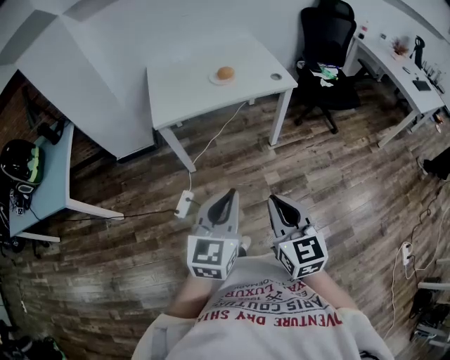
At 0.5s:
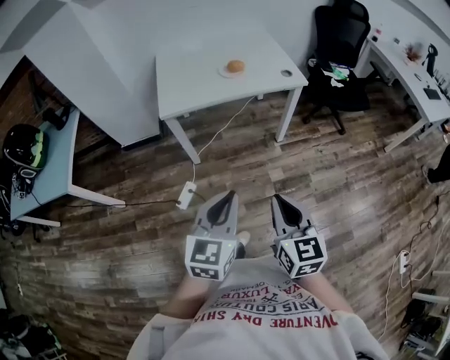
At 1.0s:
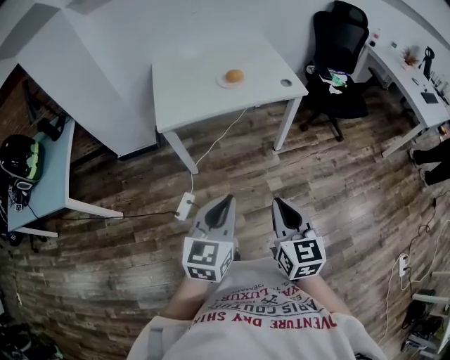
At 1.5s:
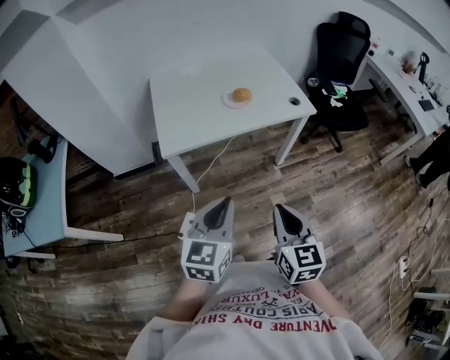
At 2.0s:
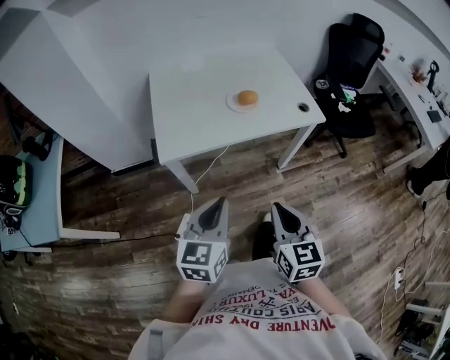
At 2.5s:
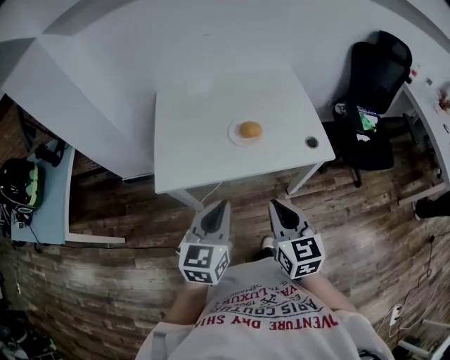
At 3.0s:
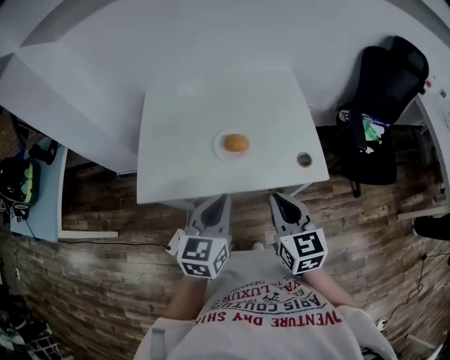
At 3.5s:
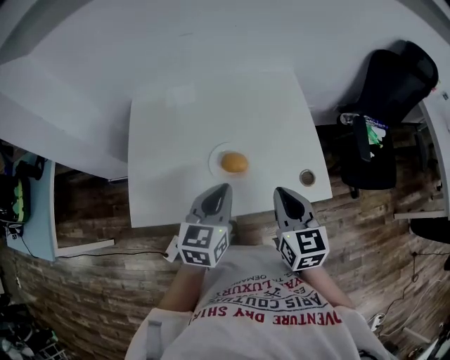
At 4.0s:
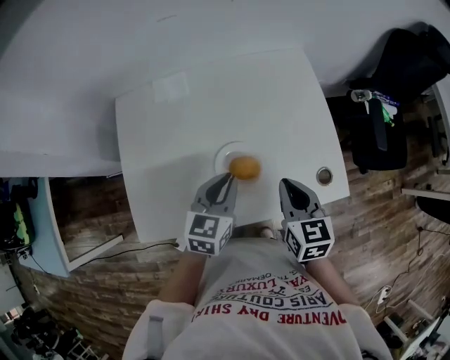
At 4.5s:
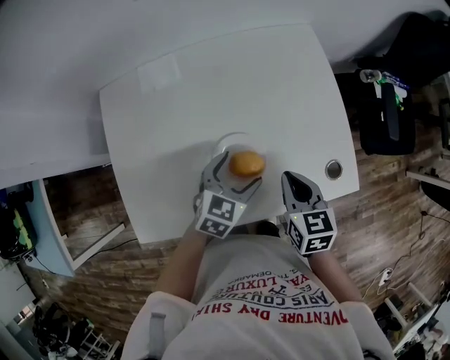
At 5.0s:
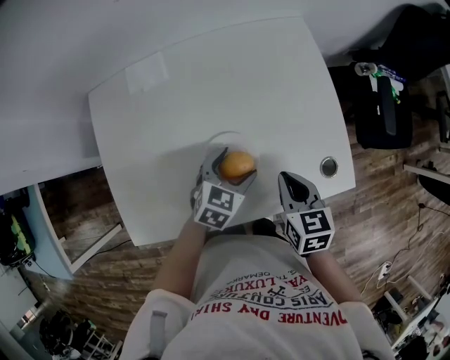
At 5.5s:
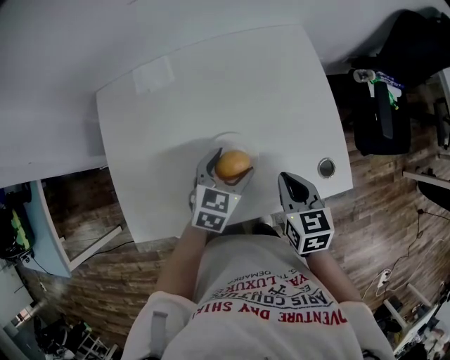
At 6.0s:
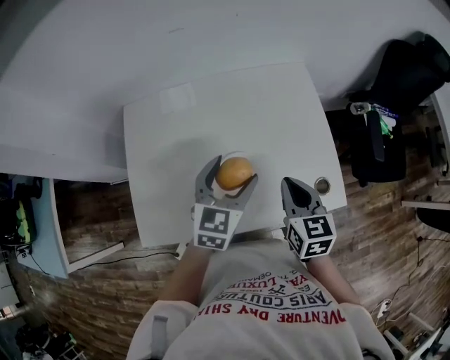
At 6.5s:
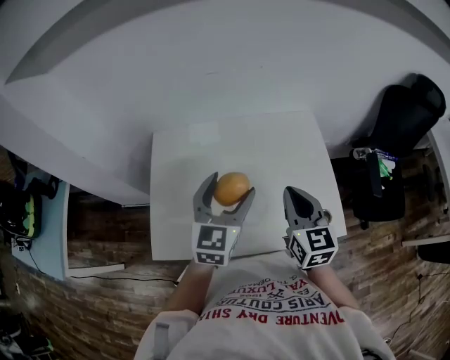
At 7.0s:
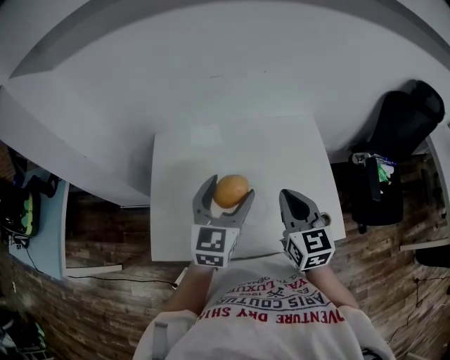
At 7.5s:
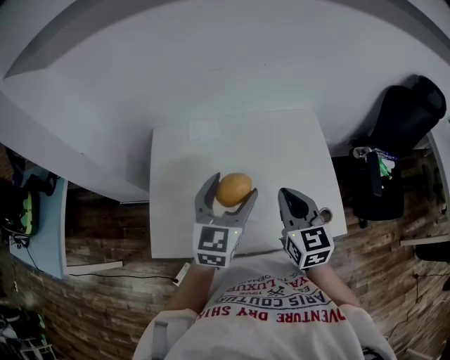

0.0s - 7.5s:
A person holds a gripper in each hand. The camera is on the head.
0.0s - 2.0s: The left gripper is displaced forward and to the left by roughly 25 cm. The right gripper moves forward, some 25 cm.
2.0s - 4.0s: The two grippers travel together, forward, about 50 cm.
4.0s - 5.5s: Both grippers move downward, about 5 cm. The left gripper opens.
5.5s - 7.5s: The right gripper moves upward and to the left, some 20 cm, and turns by about 30 degrees, while the left gripper heads upward, covering about 25 cm, and turns by approximately 30 degrees.

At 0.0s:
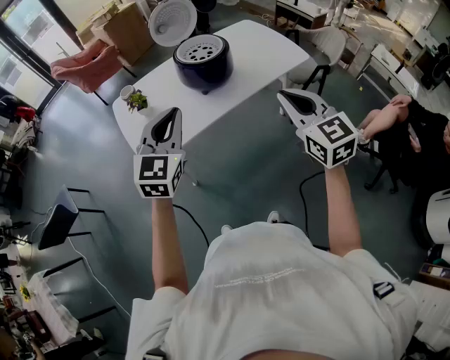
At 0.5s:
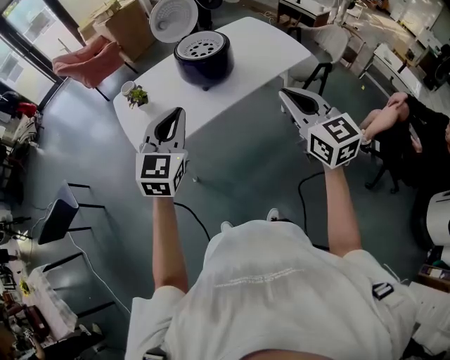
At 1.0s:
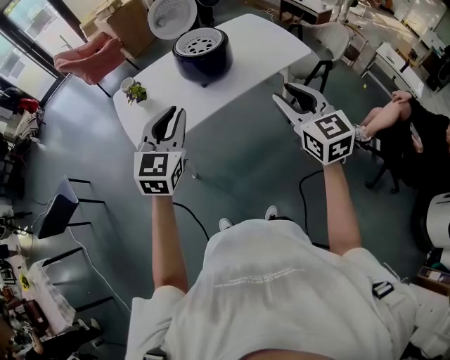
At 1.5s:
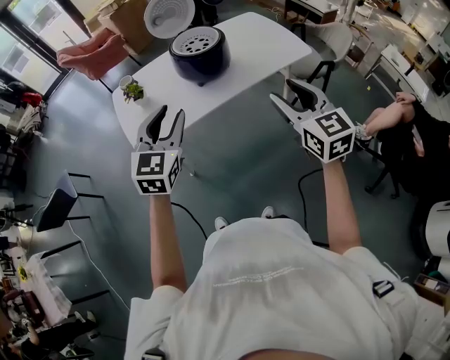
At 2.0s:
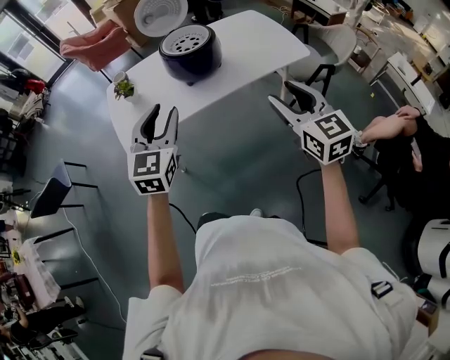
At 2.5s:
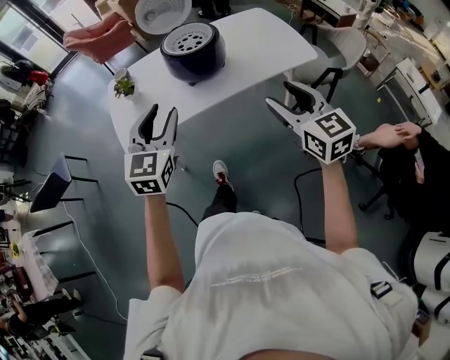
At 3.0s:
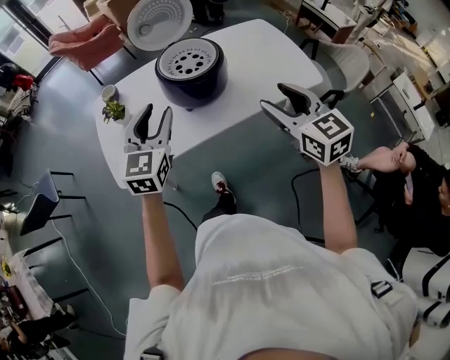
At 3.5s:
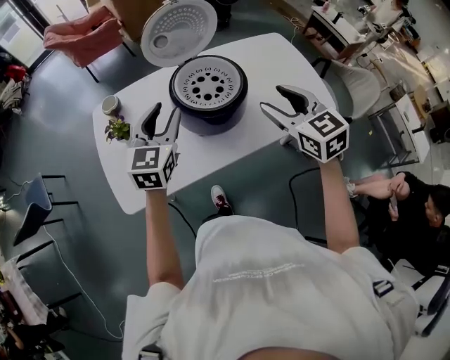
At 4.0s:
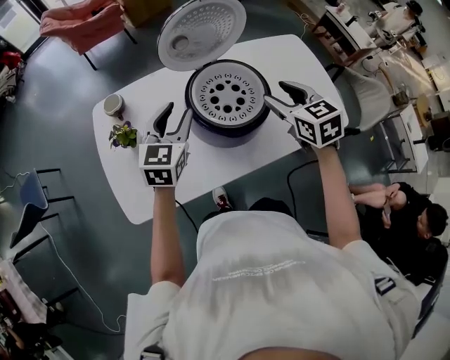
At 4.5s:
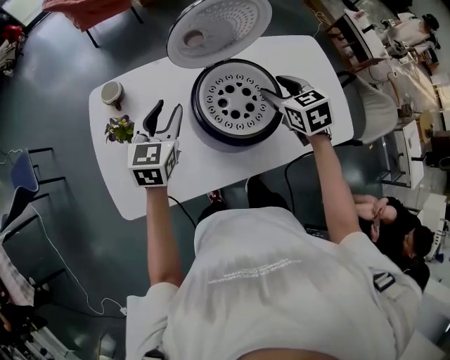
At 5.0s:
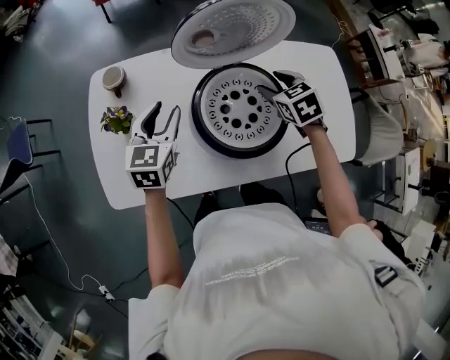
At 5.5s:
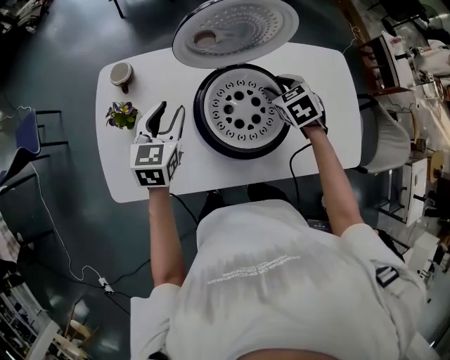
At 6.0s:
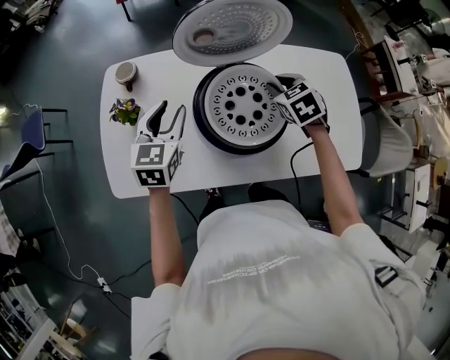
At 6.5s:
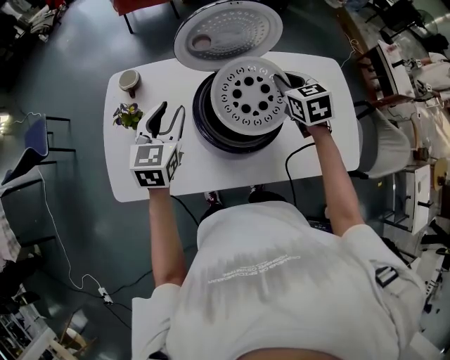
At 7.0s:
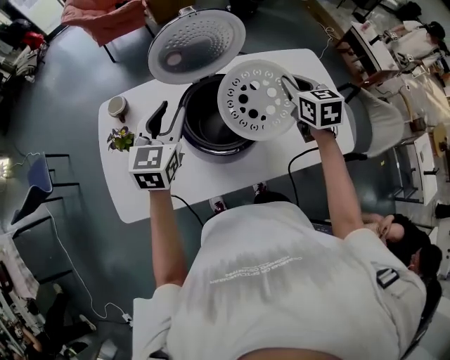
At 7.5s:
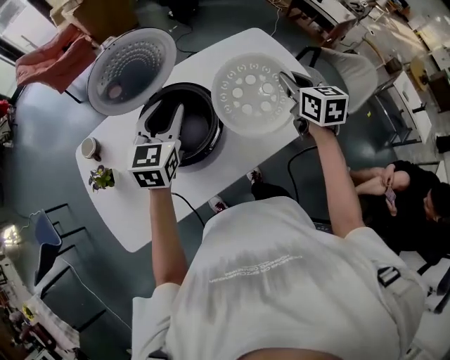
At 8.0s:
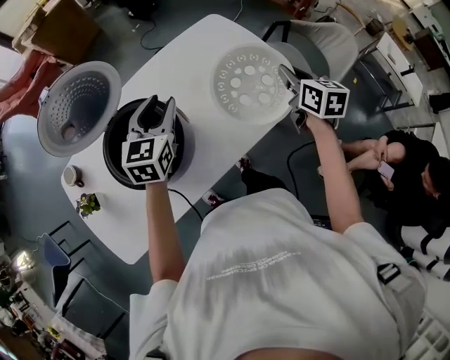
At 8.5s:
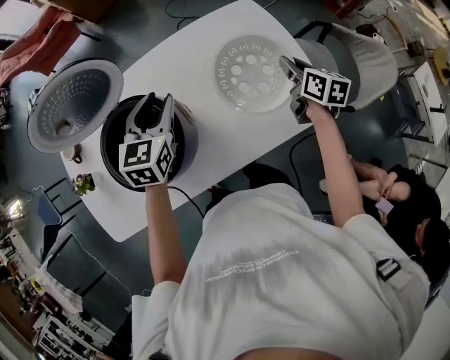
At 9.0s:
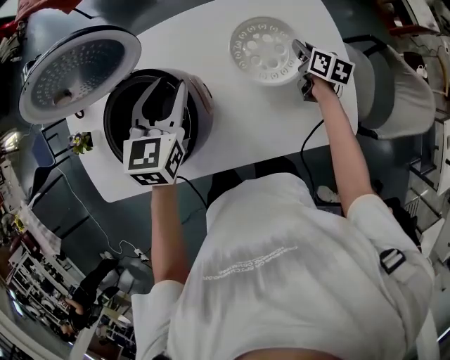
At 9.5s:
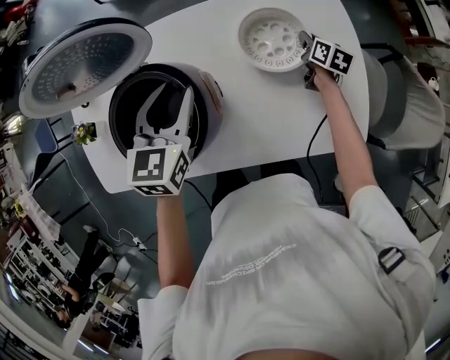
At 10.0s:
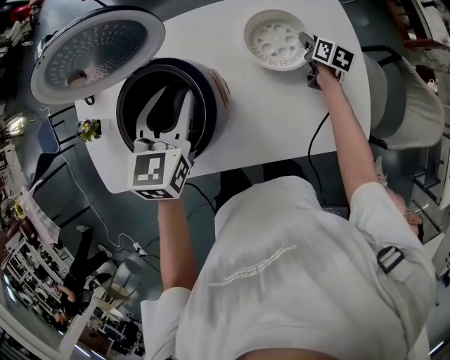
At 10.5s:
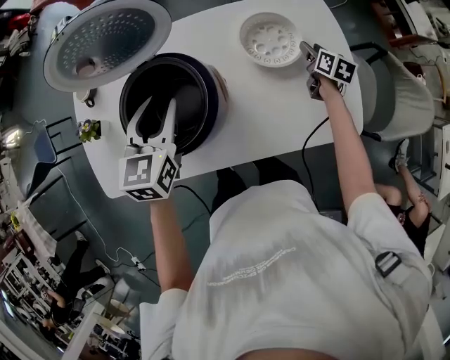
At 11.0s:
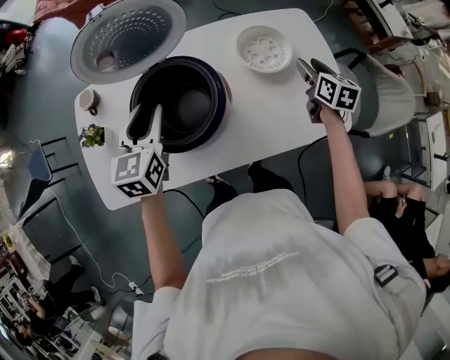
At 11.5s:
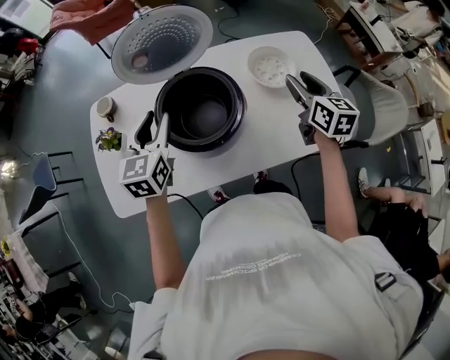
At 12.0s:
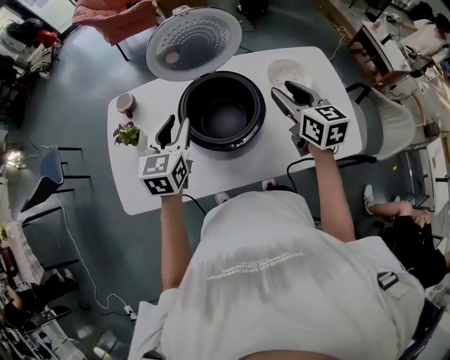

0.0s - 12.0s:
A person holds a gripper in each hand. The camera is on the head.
0.0s - 2.0s: Both grippers move to the right, about 10 cm. The right gripper opens its fingers. Meanwhile the left gripper opens.
2.0s - 4.0s: Both grippers are carried forward, approximately 40 cm. The right gripper turns by roughly 20 degrees.
4.0s - 6.0s: The right gripper is displaced forward and downward by approximately 20 cm, swivels approximately 30 degrees, and closes its fingers, while the left gripper turns by some 20 degrees.
6.0s - 8.0s: The left gripper ends up roughly 30 cm from where it was, and swivels roughly 30 degrees. Meanwhile the right gripper changes place by some 35 cm, and rolls clockwise, seen from behind, by some 60 degrees.
8.0s - 10.0s: The right gripper goes some 35 cm forward and downward, swivels about 20 degrees, and opens its fingers, while the left gripper shifts about 5 cm to the left, and swivels about 30 degrees.
10.0s - 12.0s: The right gripper heads upward, to the left and backward, covering roughly 50 cm, and turns by approximately 40 degrees; the left gripper travels to the left and backward by about 20 cm.

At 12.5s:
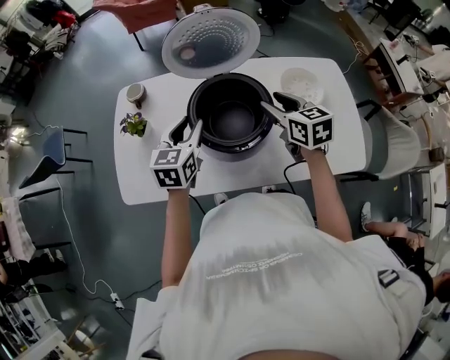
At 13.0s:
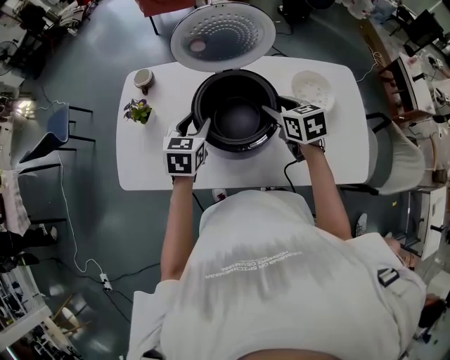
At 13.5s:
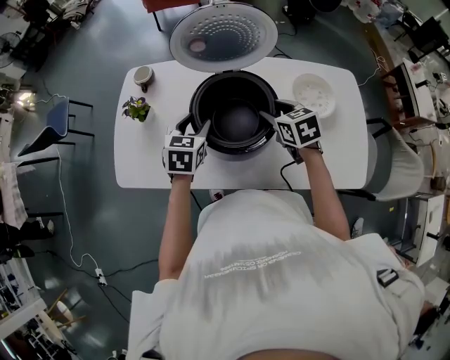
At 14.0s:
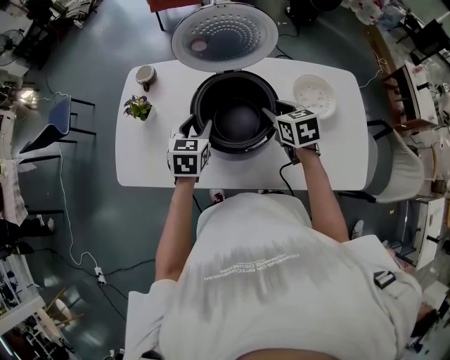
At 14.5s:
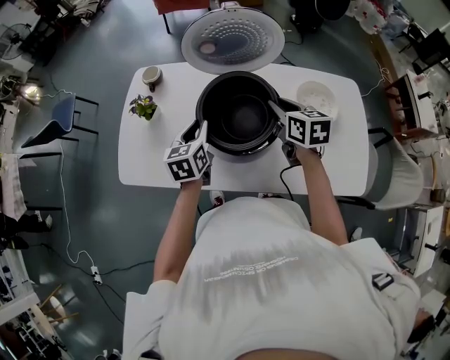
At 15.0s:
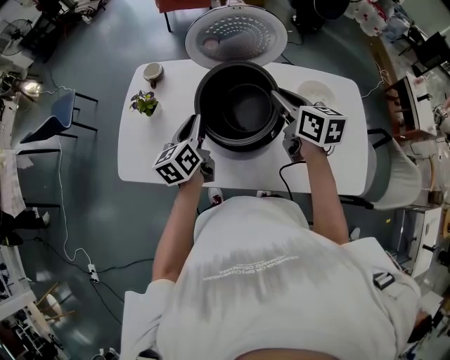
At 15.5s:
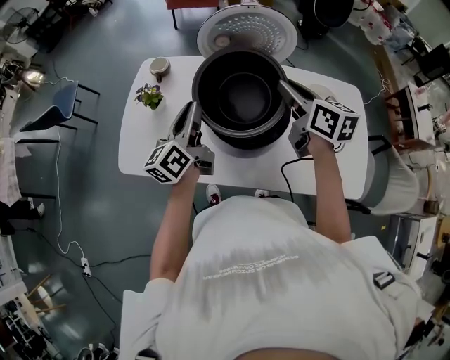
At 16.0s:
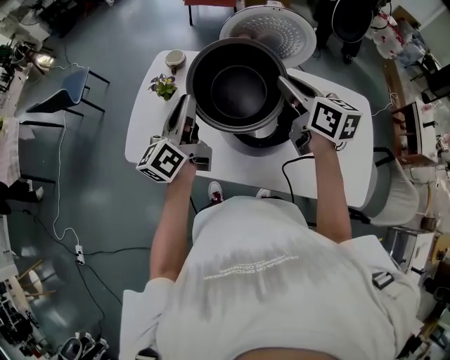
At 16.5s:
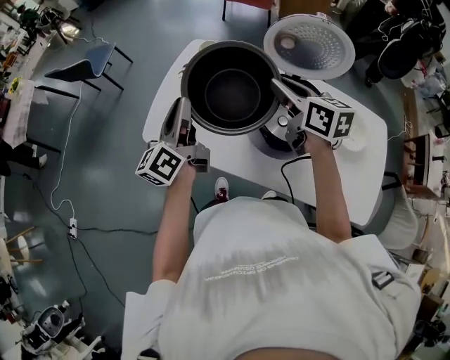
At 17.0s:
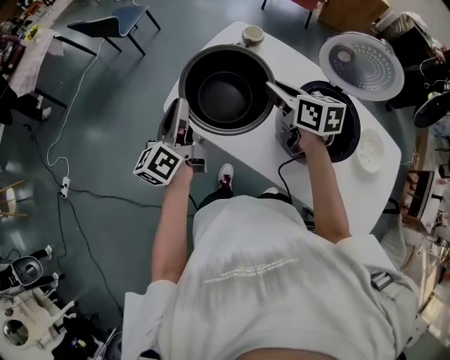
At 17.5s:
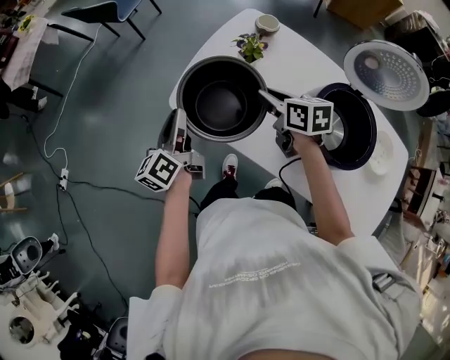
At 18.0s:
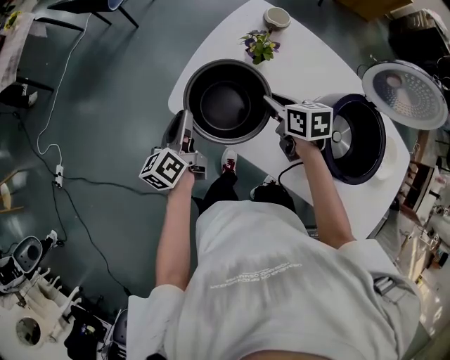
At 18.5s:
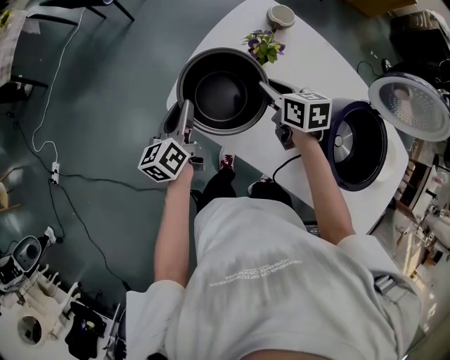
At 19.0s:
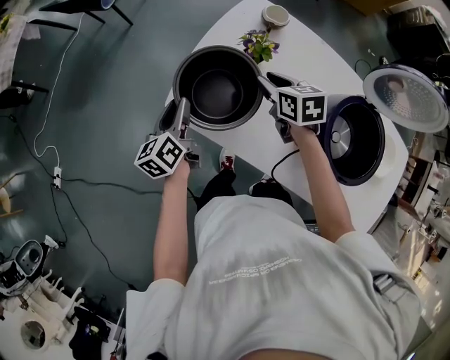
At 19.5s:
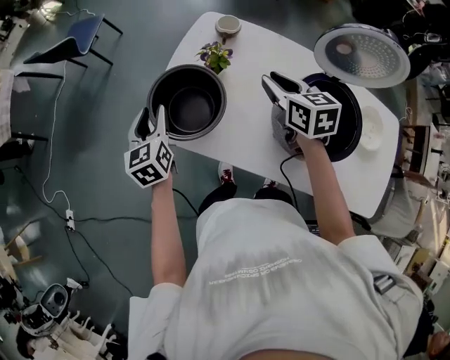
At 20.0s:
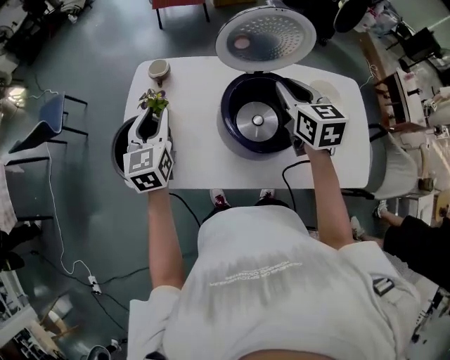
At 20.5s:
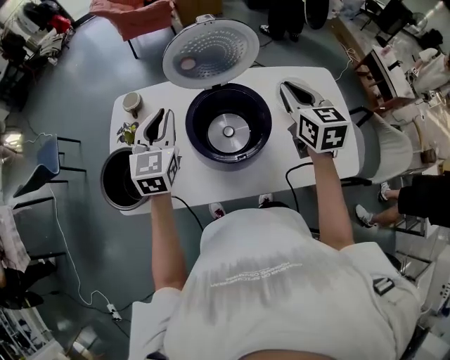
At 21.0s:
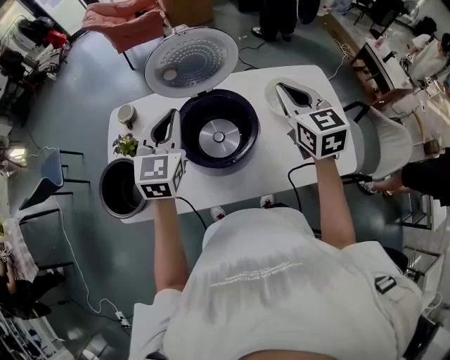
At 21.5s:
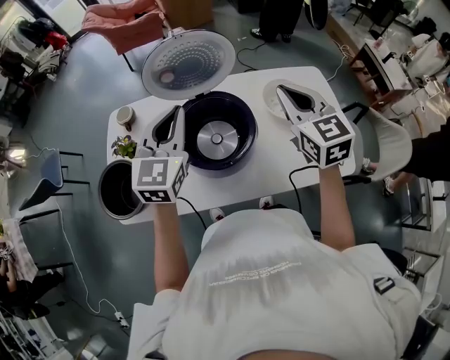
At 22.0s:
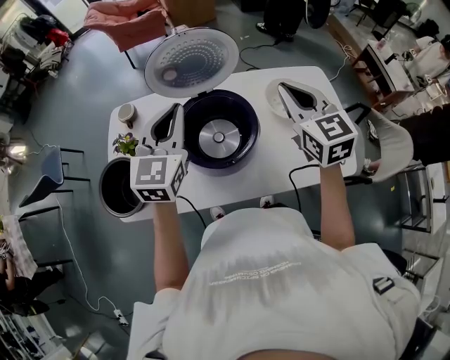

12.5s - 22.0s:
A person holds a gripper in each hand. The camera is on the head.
12.5s - 14.5s: The right gripper closes; the left gripper is displaced downward by some 5 cm, and changes its angle by approximately 20 degrees.
14.5s - 16.5s: Both grippers move to the left and upward, about 20 cm. The right gripper turns by approximately 20 degrees. Meanwhile the left gripper points its fingers approximately 40 degrees further upward.
16.5s - 18.0s: The right gripper is displaced downward, to the left and forward by approximately 30 cm, and changes its angle by roughly 30 degrees; the left gripper shifts roughly 25 cm downward and to the left, and swivels some 30 degrees.
18.0s - 20.0s: The right gripper ends up roughly 35 cm from where it was, and rotates about 50 degrees, while the left gripper ends up some 30 cm from where it was, and rotates around the line of its fingers by some 50 degrees, clockwise from behind.
20.0s - 22.0s: The left gripper shifts roughly 25 cm to the right and upward, changes its angle by about 30 degrees, and closes its fingers, while the right gripper shifts about 15 cm to the right and upward.
